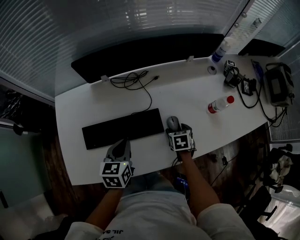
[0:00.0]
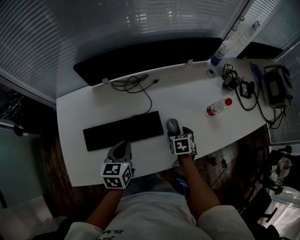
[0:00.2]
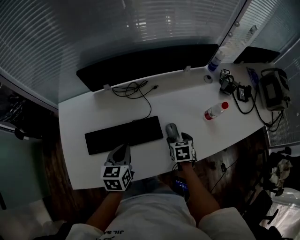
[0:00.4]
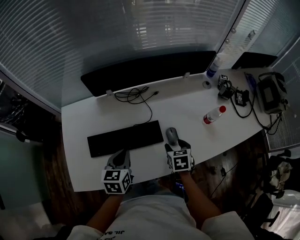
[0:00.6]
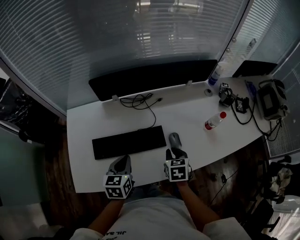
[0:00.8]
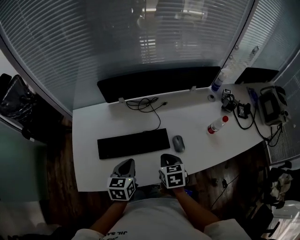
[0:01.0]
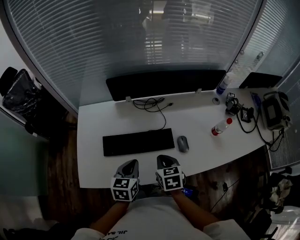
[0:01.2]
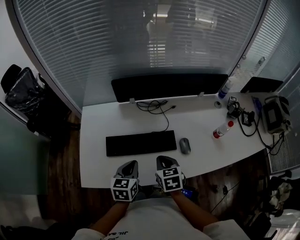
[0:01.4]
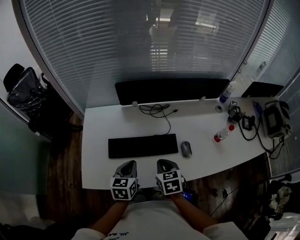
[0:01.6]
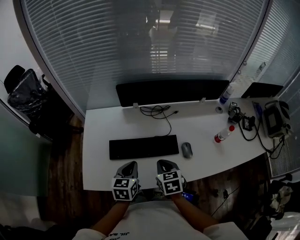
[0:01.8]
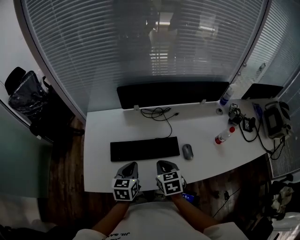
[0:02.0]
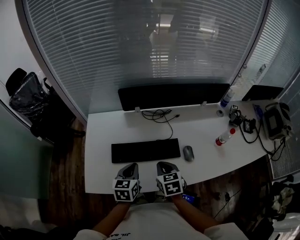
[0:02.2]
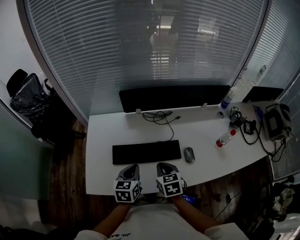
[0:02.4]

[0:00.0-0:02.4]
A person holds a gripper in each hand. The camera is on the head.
0:00.0 to 0:01.2: The left gripper travels backward by some 10 cm; the right gripper travels upward, to the left and backward by roughly 25 cm, and closes.
0:01.2 to 0:02.4: The right gripper is displaced to the left by about 5 cm.

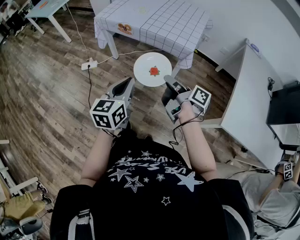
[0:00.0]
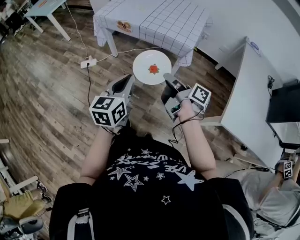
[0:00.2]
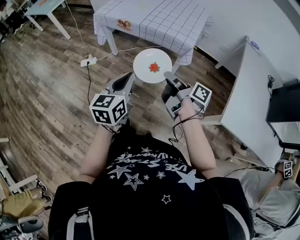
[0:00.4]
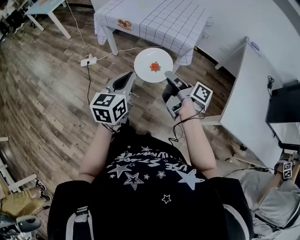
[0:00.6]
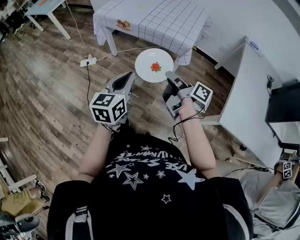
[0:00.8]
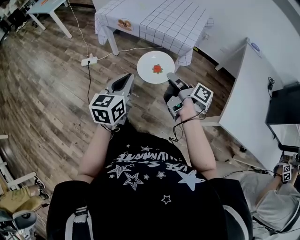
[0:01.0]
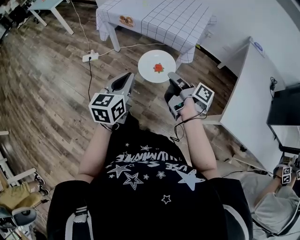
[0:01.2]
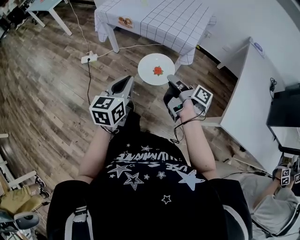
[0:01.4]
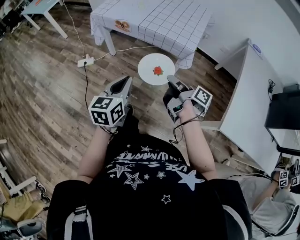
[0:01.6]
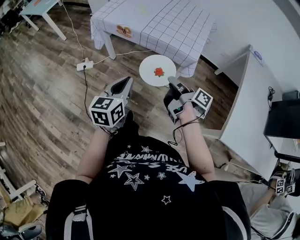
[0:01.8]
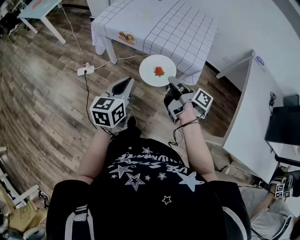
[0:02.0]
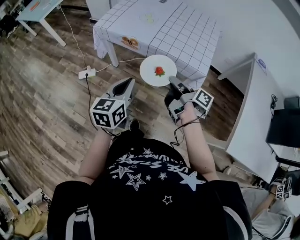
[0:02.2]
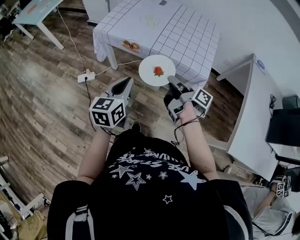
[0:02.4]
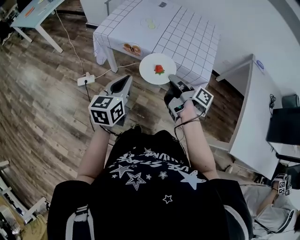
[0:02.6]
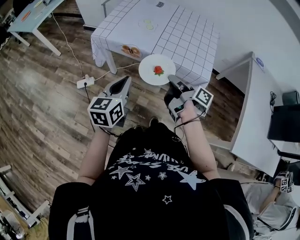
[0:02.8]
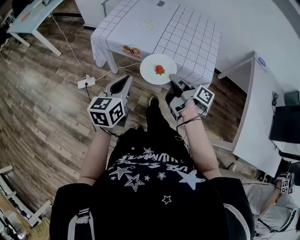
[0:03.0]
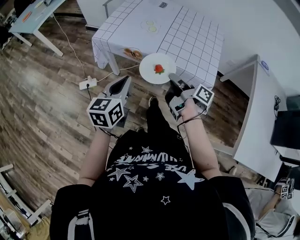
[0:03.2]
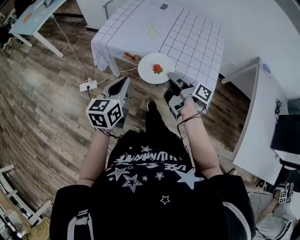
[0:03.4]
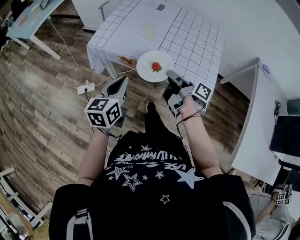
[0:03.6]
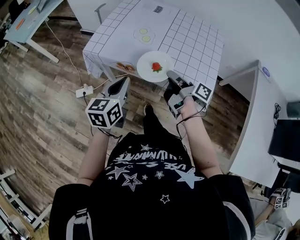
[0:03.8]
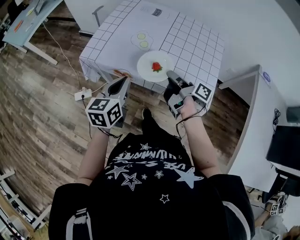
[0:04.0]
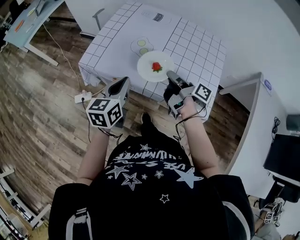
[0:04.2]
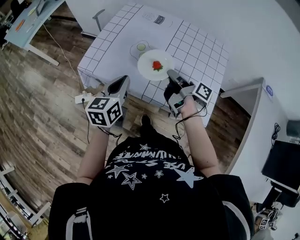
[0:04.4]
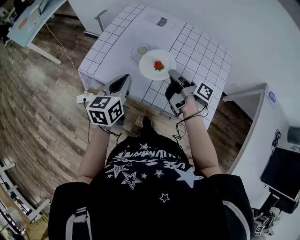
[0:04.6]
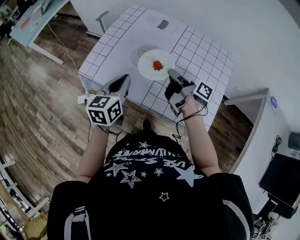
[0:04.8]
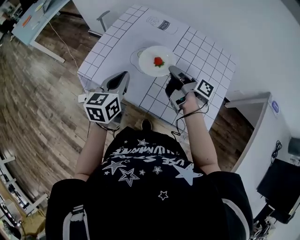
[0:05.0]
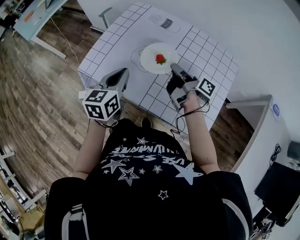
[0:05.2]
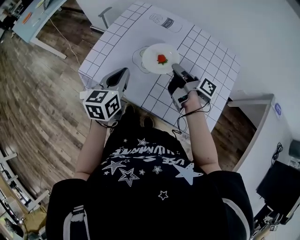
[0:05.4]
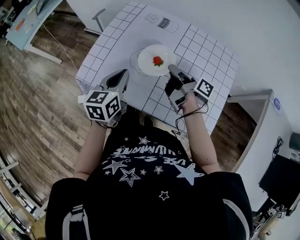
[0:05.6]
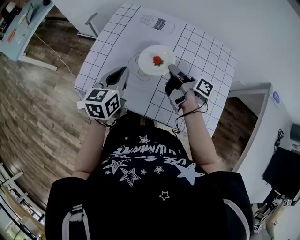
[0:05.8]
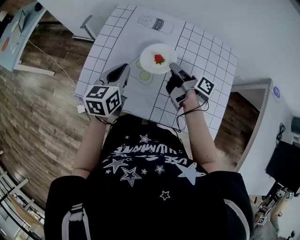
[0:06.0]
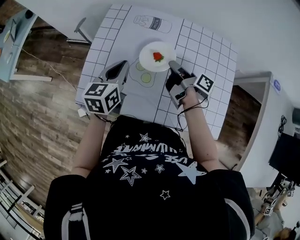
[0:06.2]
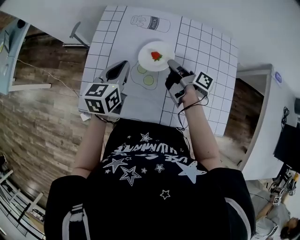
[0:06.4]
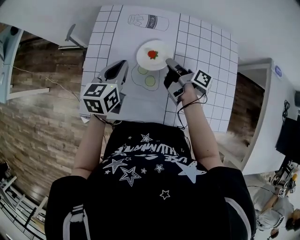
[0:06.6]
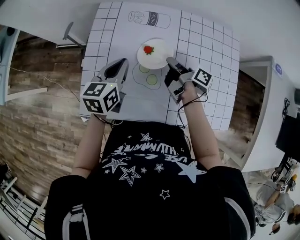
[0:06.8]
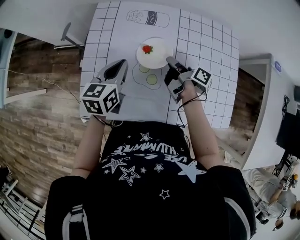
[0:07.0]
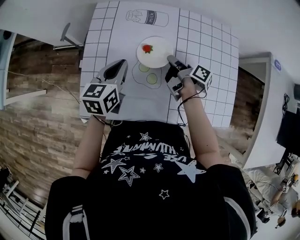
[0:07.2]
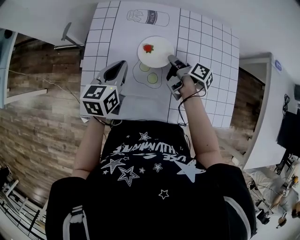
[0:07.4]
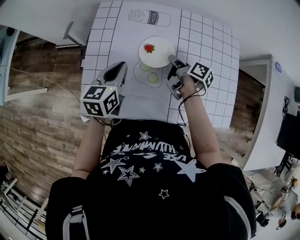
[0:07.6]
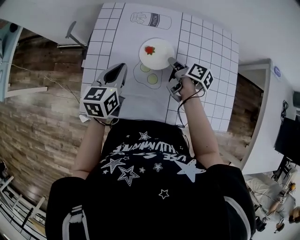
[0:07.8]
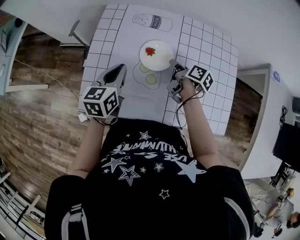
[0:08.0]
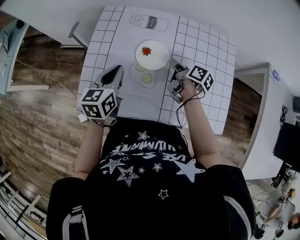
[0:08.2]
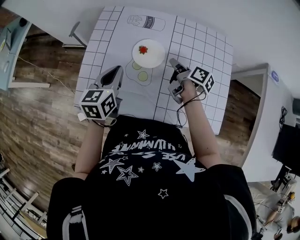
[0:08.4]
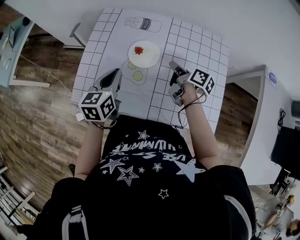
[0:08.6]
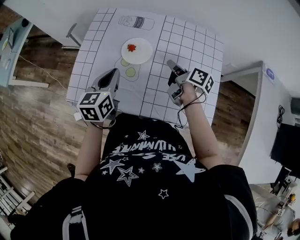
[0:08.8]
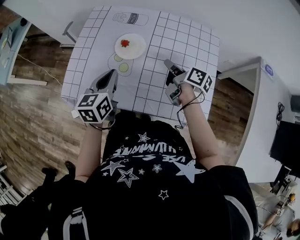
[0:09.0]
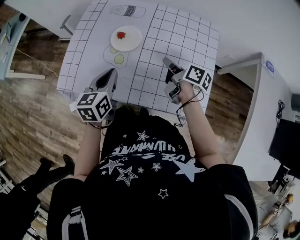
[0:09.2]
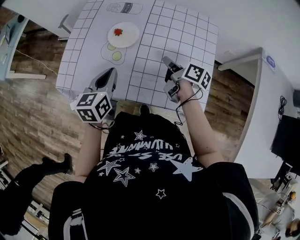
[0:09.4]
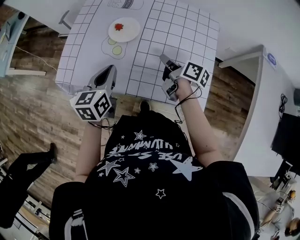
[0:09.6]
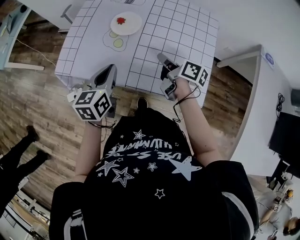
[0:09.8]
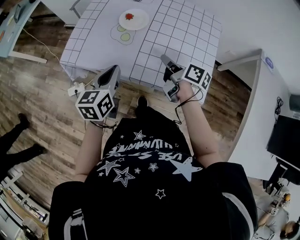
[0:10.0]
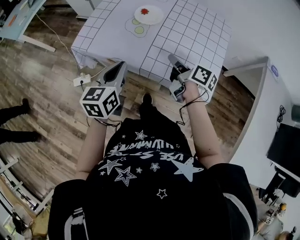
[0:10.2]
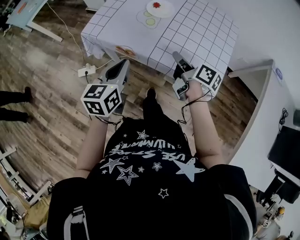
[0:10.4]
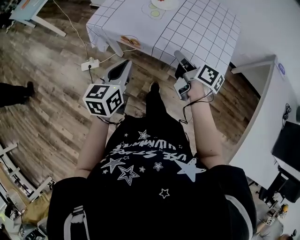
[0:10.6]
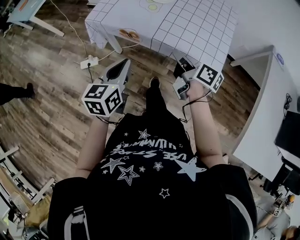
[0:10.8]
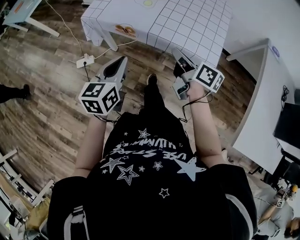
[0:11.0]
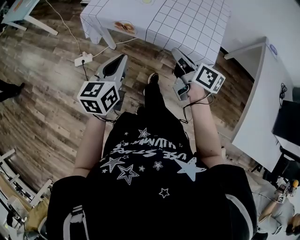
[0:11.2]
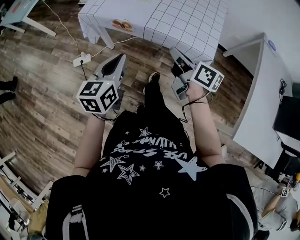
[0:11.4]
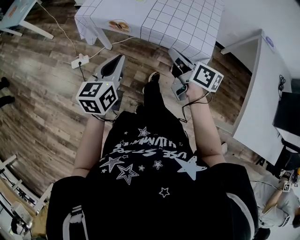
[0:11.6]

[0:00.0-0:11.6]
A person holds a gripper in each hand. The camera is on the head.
0:01.4 to 0:02.8: The left gripper changes place by approximately 25 cm.
0:02.8 to 0:04.4: The left gripper ends up some 20 cm from where it was.
0:04.4 to 0:05.8: The left gripper changes place by roughly 15 cm.
0:05.8 to 0:07.2: The left gripper moves about 10 cm.
0:07.2 to 0:08.8: The left gripper ends up roughly 10 cm from where it was.
0:08.8 to 0:10.2: The left gripper shifts by roughly 20 cm.
0:10.2 to 0:11.6: The left gripper changes place by approximately 15 cm.

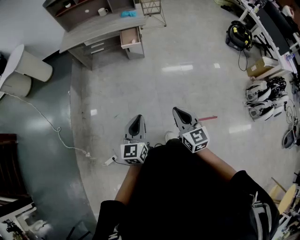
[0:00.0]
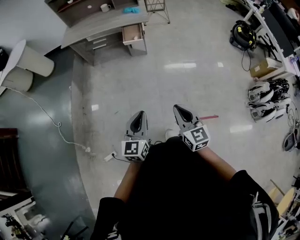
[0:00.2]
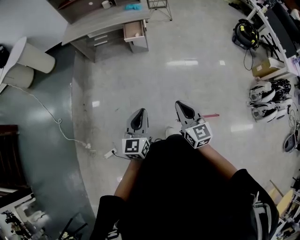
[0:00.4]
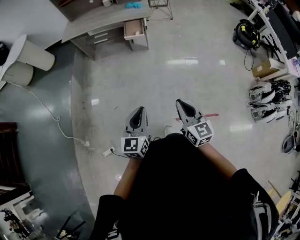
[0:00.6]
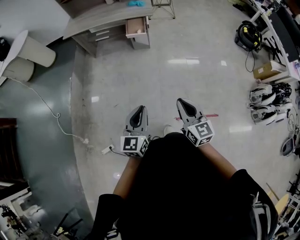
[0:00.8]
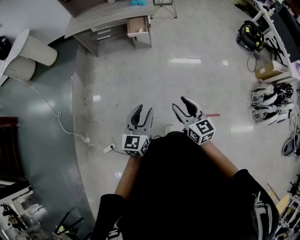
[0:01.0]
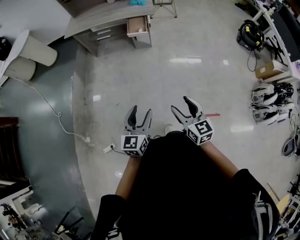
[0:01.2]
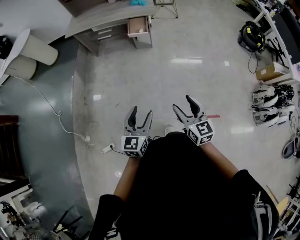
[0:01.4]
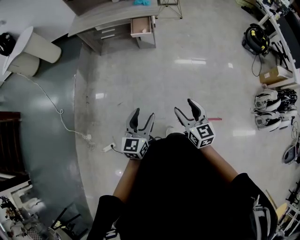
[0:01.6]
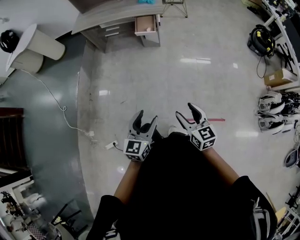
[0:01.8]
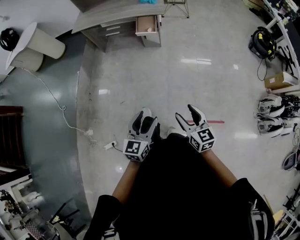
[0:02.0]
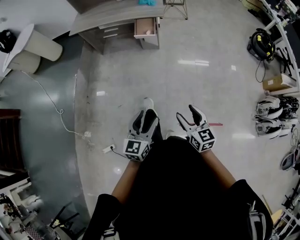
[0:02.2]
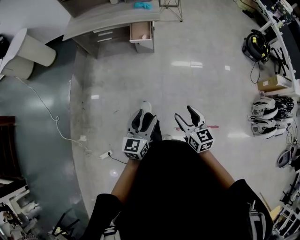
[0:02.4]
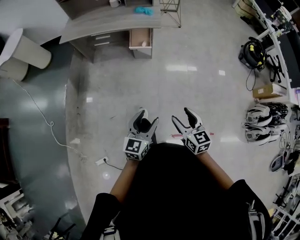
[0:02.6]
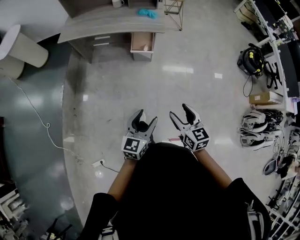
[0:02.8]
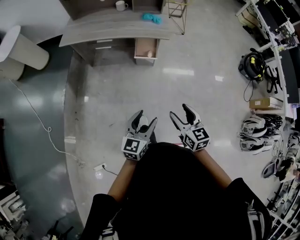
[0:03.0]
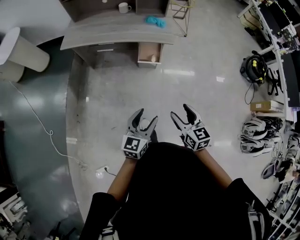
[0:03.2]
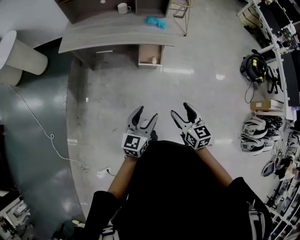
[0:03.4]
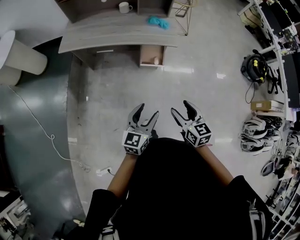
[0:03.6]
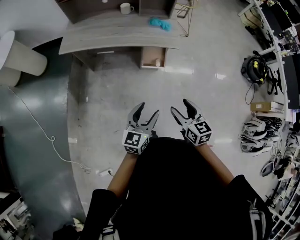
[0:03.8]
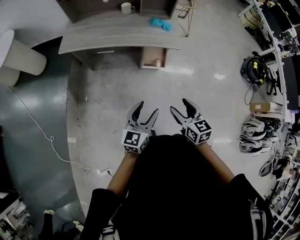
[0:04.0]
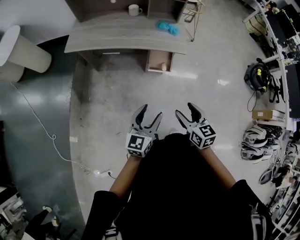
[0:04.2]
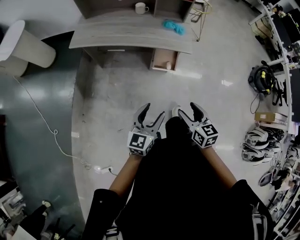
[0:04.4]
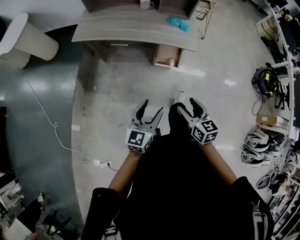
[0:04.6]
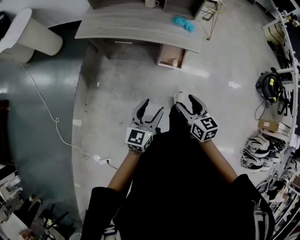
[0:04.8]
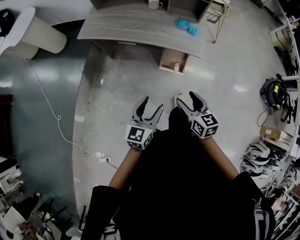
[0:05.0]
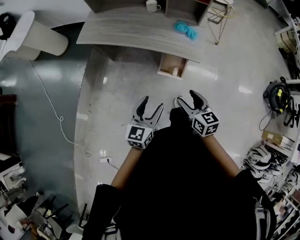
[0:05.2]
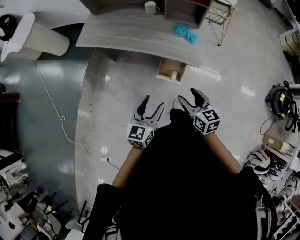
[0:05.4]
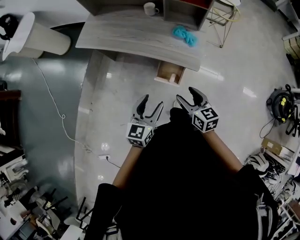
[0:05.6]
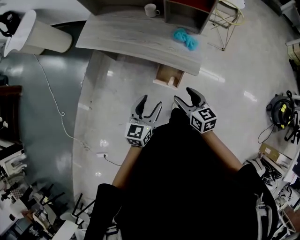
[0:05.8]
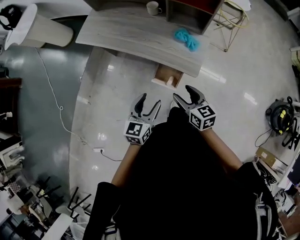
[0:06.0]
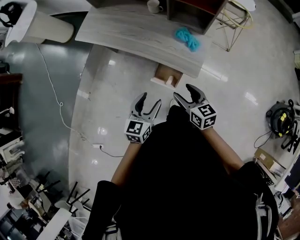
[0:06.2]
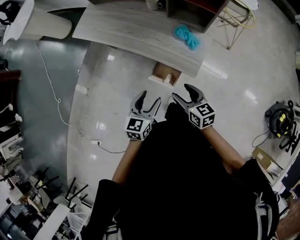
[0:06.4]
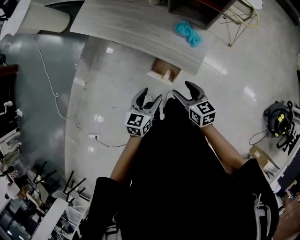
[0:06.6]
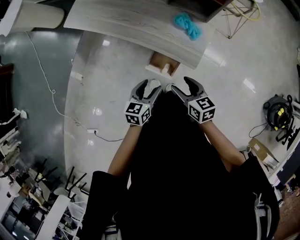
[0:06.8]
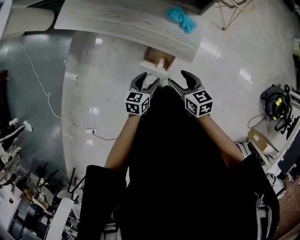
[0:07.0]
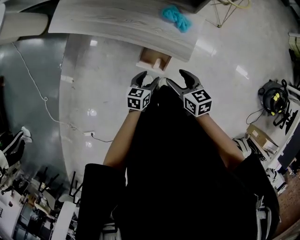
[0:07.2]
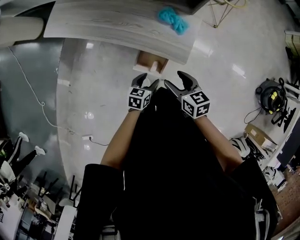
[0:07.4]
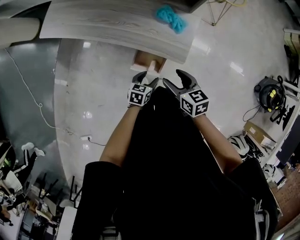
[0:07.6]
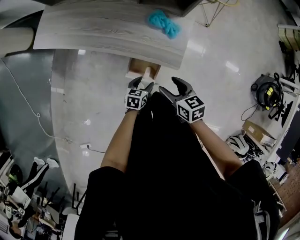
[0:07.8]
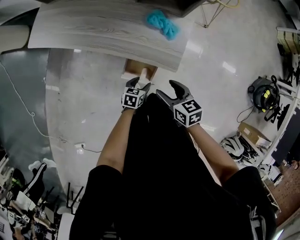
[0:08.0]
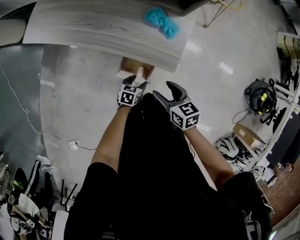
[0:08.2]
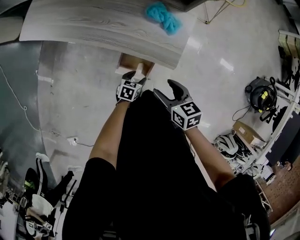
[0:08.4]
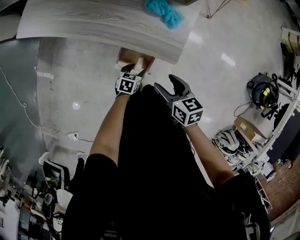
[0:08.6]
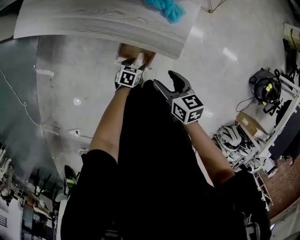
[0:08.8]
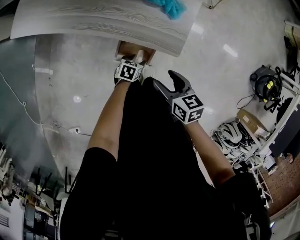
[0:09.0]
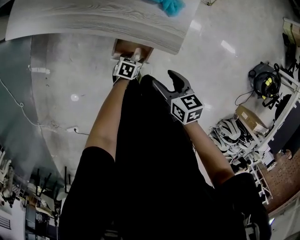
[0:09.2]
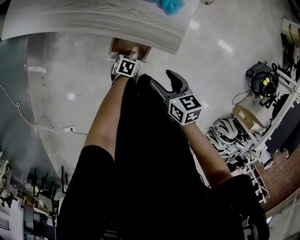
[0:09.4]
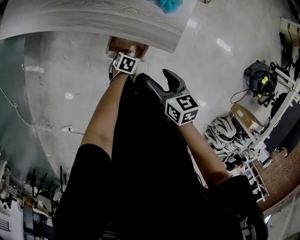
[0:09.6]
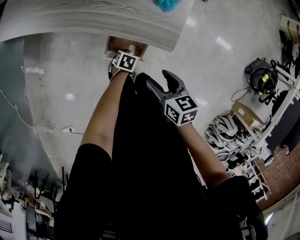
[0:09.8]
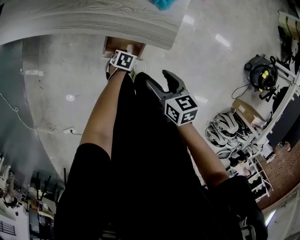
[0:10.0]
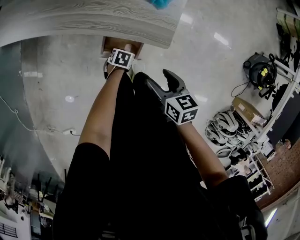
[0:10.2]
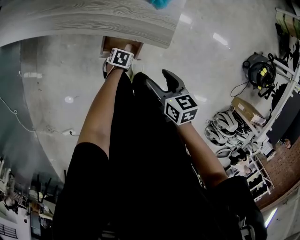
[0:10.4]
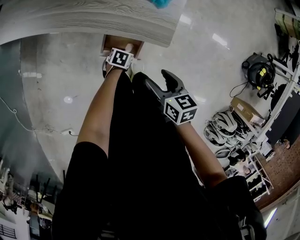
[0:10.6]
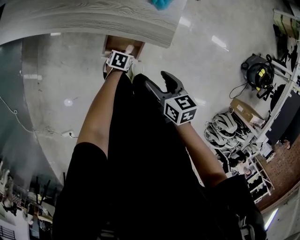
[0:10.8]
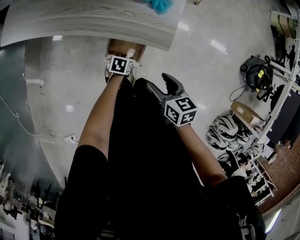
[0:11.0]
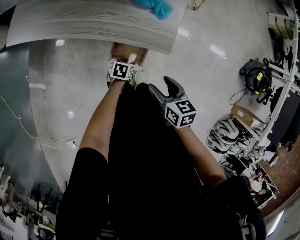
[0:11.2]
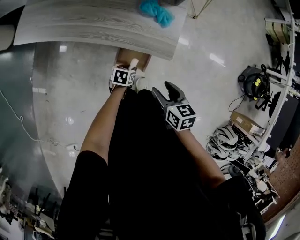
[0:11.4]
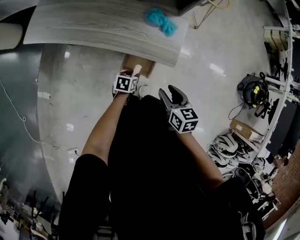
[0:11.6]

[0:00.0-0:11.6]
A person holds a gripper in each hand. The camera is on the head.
0:00.0 to 0:01.4: The right gripper is displaced to the right by roughly 5 cm, and opens its fingers, while the left gripper moves approximately 5 cm, and opens up.
0:01.4 to 0:02.8: The two grippers go roughly 30 cm forward.
0:02.8 to 0:04.4: Both grippers travel together forward and to the left, about 25 cm.
0:04.4 to 0:05.8: Both grippers move forward and to the right, some 30 cm. The right gripper turns by about 20 degrees. Meanwhile the left gripper turns by roughly 20 degrees.
0:05.8 to 0:07.2: The left gripper goes roughly 25 cm downward and forward, and swivels approximately 20 degrees. The right gripper goes some 10 cm downward and forward.
0:07.2 to 0:08.8: The left gripper is displaced downward by some 20 cm, and rotates about 20 degrees. Meanwhile the right gripper goes about 10 cm downward.
0:08.8 to 0:10.2: The right gripper moves some 5 cm, while the left gripper travels downward by roughly 5 cm, and closes.
0:10.2 to 0:11.6: The left gripper shifts some 15 cm upward, and changes its angle by roughly 20 degrees. The right gripper goes some 10 cm upward, and closes.
